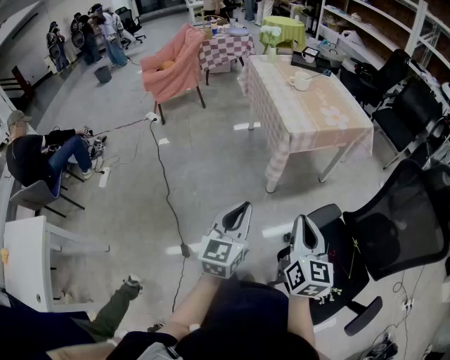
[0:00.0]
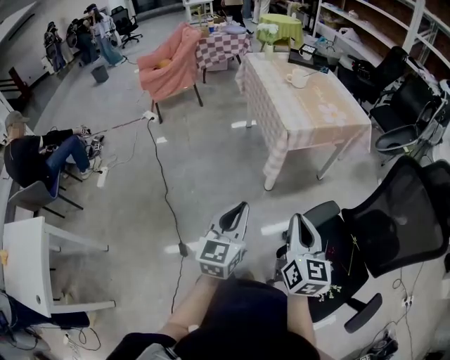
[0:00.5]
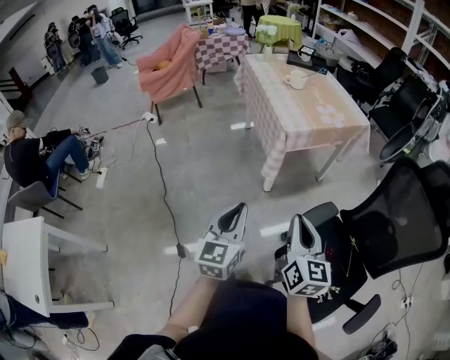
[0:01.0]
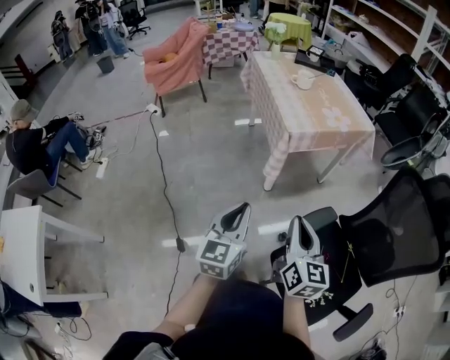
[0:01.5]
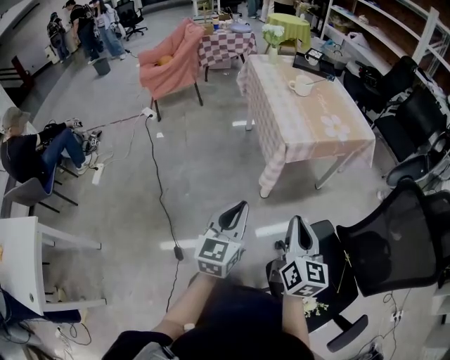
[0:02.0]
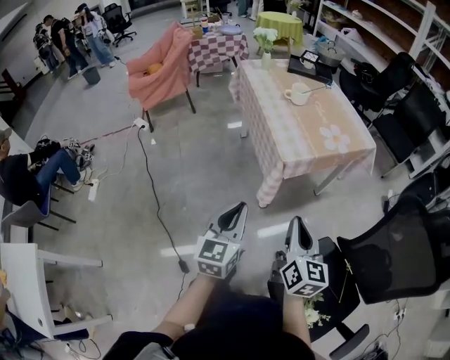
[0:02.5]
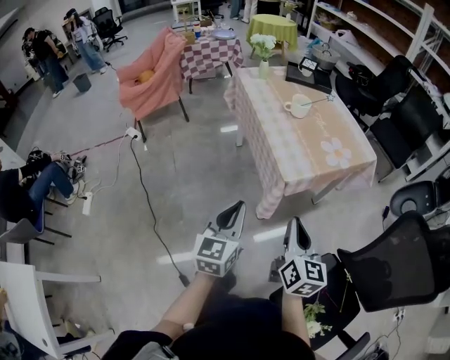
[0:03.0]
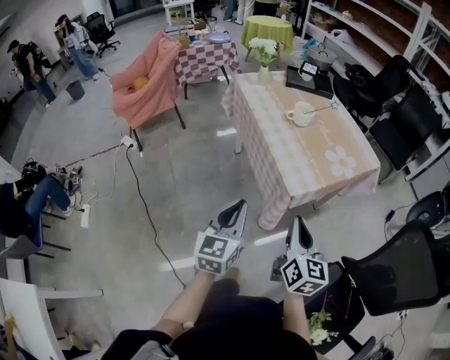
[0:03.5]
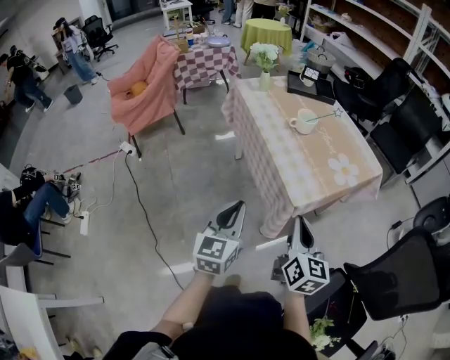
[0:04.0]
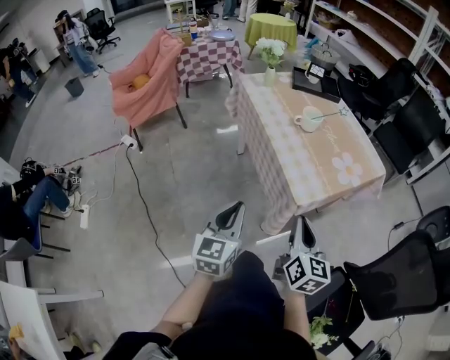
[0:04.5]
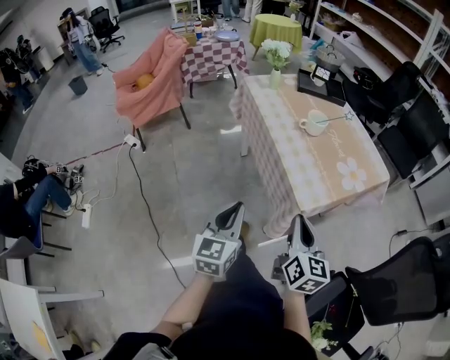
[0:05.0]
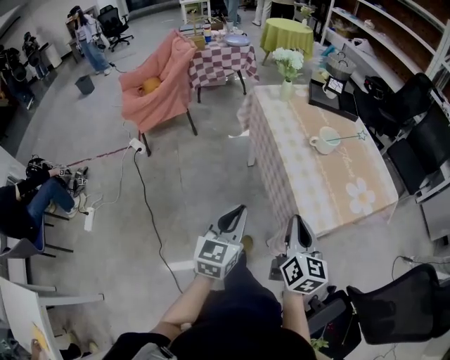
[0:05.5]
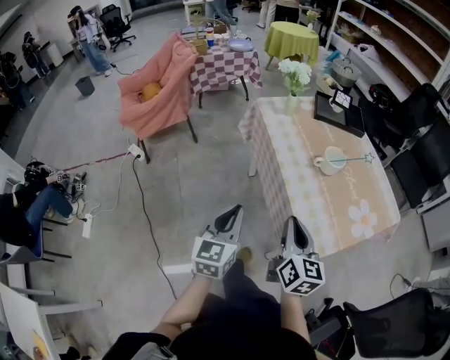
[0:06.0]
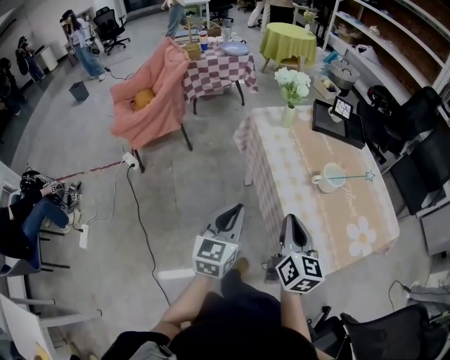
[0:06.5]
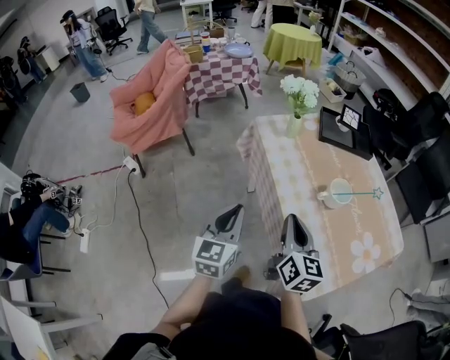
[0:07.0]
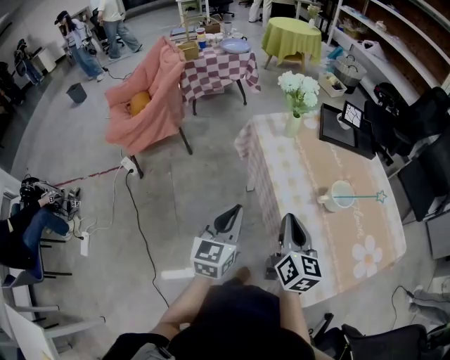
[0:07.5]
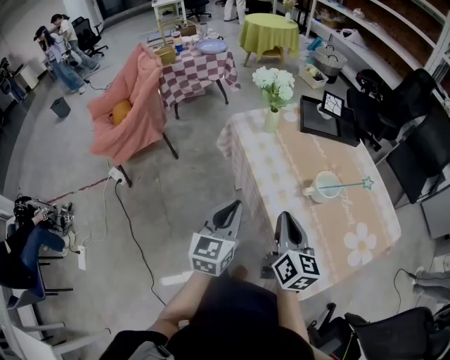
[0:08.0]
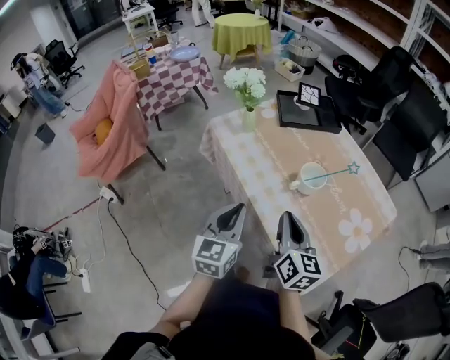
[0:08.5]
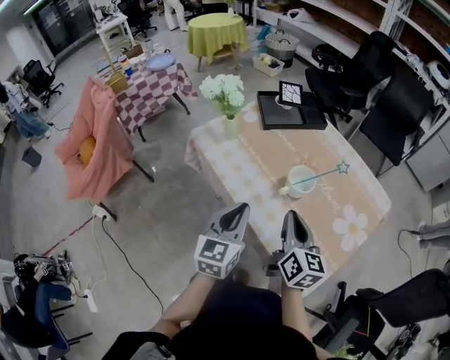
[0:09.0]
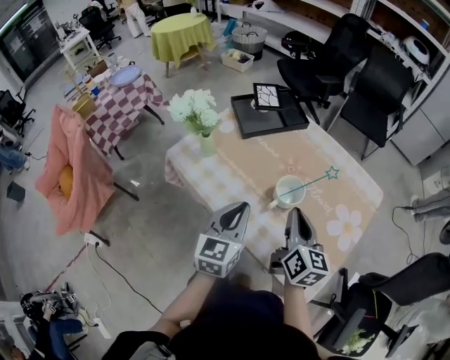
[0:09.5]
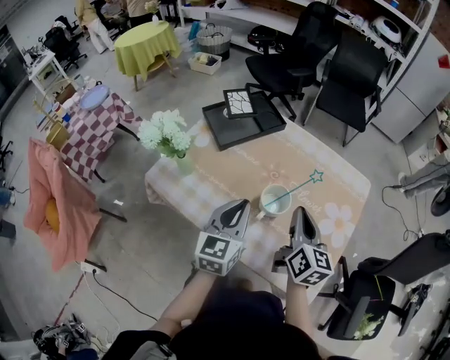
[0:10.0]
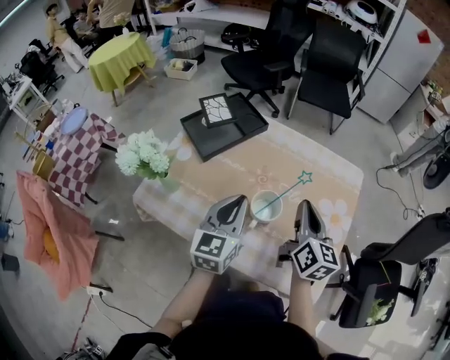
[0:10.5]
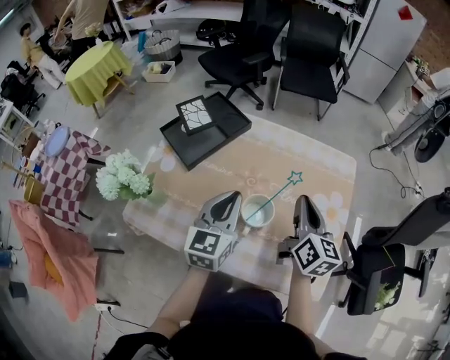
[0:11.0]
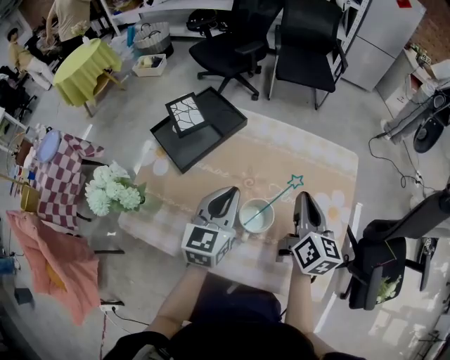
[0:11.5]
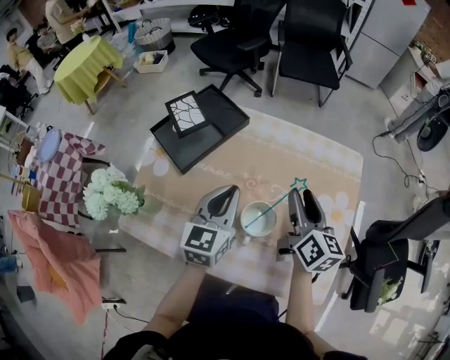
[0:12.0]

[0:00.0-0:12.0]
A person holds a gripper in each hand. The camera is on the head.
0:00.0 to 0:02.0: Both grippers travel together forward, roughly 5 cm.
0:02.0 to 0:04.0: The left gripper is displaced forward and to the left by some 30 cm, while the right gripper travels forward by some 25 cm.
0:04.0 to 0:06.0: Both grippers travel together forward and to the left, approximately 20 cm.
0:06.0 to 0:08.0: The grippers both shift forward by approximately 20 cm.
0:08.0 to 0:10.0: The right gripper moves some 20 cm, and rotates approximately 40 degrees; the left gripper shifts by roughly 25 cm, and swivels some 40 degrees.
0:10.0 to 0:12.0: The grippers both shift forward by approximately 10 cm. The right gripper opens.

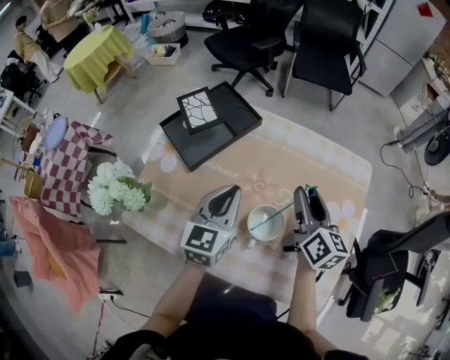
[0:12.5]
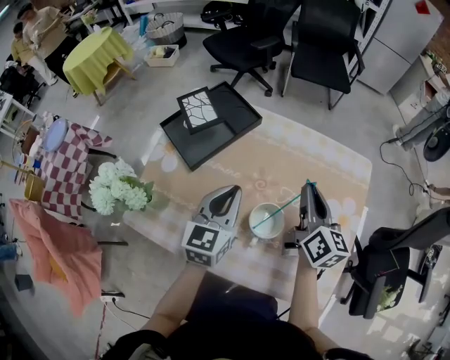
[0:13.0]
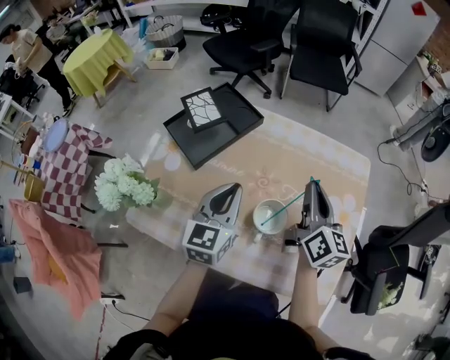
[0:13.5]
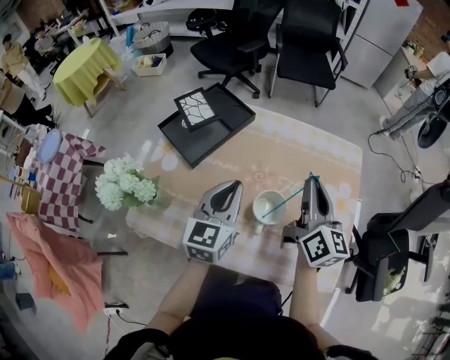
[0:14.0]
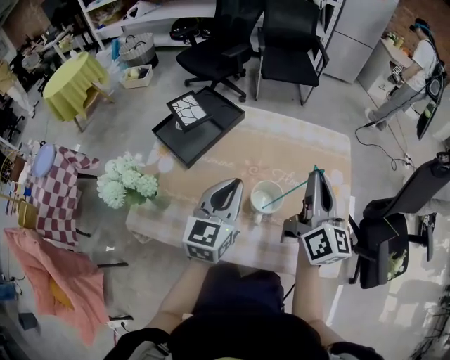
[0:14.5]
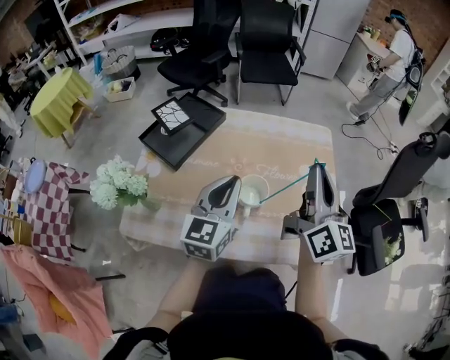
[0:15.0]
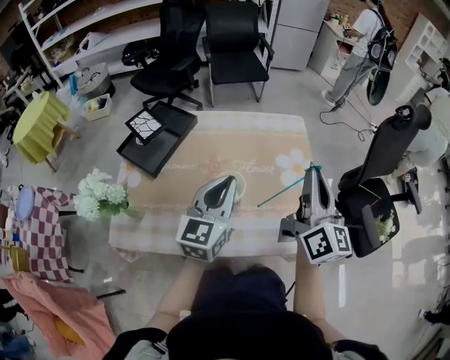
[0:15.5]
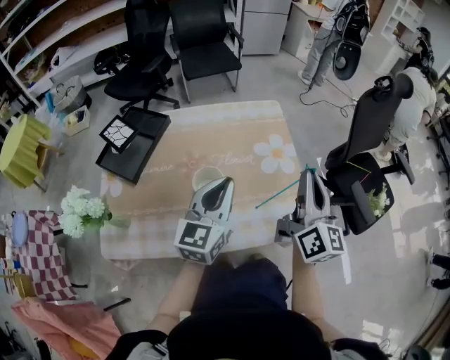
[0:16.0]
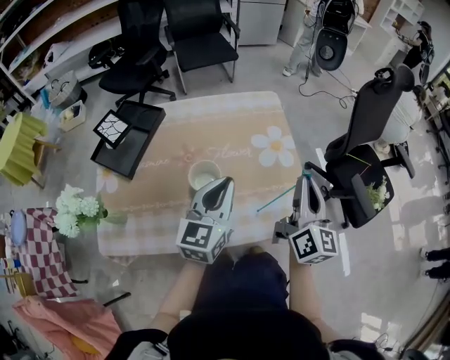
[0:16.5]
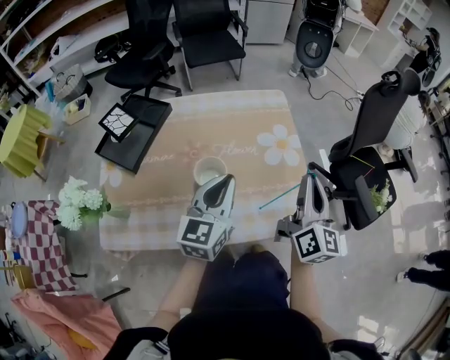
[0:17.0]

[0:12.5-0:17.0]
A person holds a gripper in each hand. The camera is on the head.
0:12.5 to 0:14.5: The right gripper is displaced upward and backward by about 15 cm, changes its angle by some 30 degrees, and closes up; the left gripper heads backward, covering approximately 5 cm.
0:14.5 to 0:17.0: The left gripper moves to the right, about 15 cm; the right gripper moves to the right and backward, some 20 cm, and changes its angle by about 20 degrees.

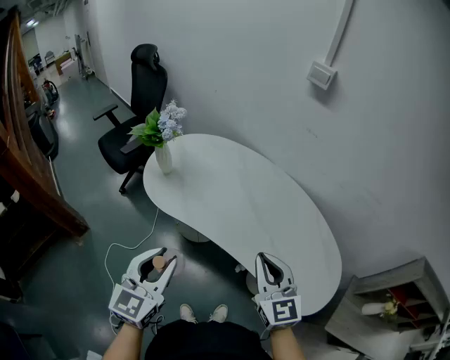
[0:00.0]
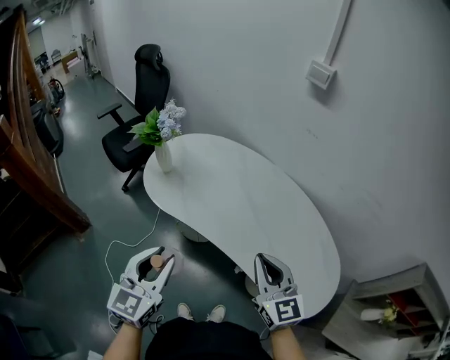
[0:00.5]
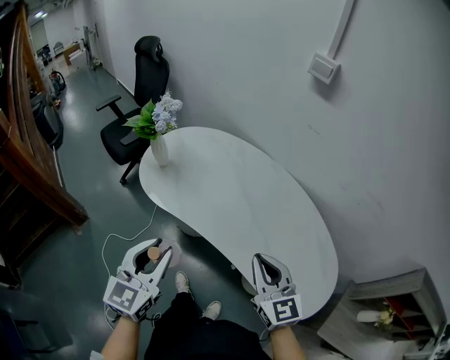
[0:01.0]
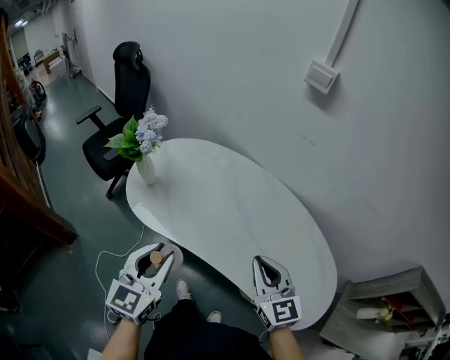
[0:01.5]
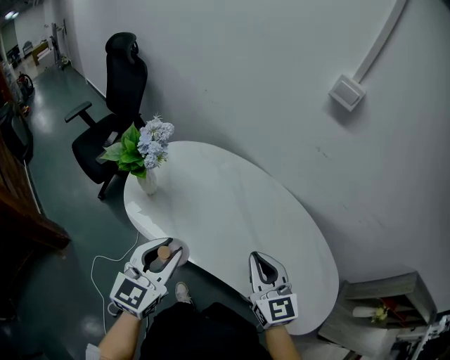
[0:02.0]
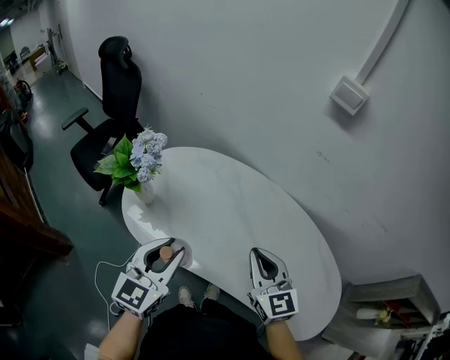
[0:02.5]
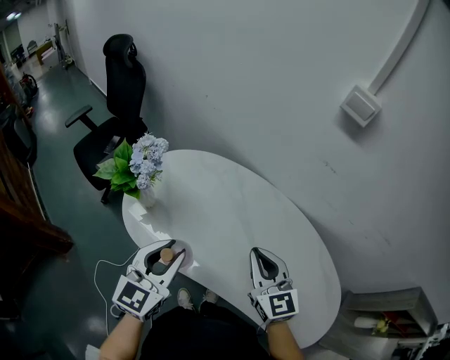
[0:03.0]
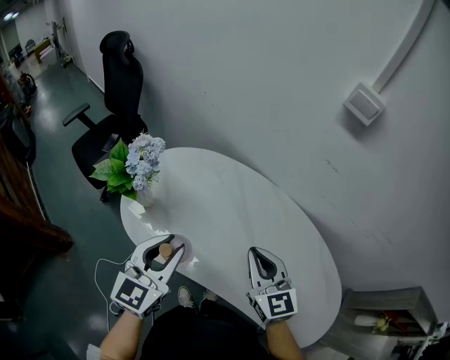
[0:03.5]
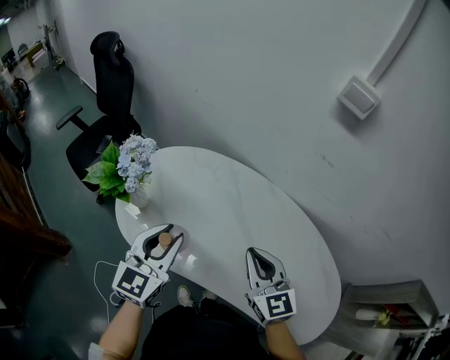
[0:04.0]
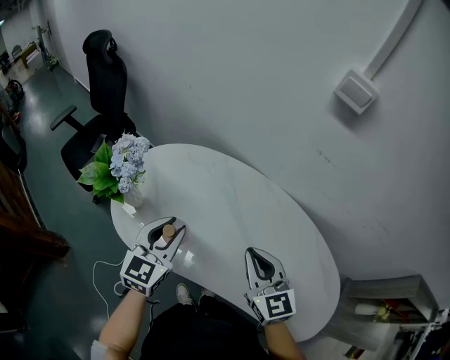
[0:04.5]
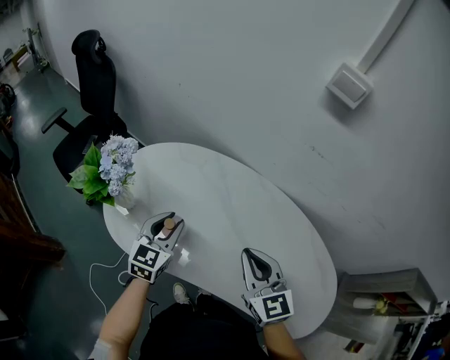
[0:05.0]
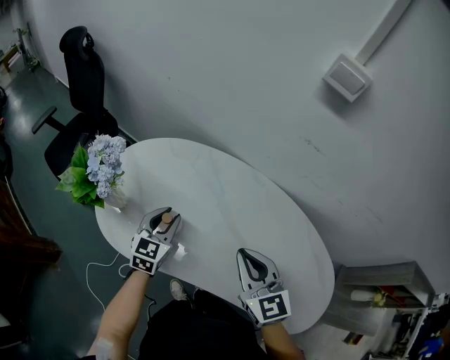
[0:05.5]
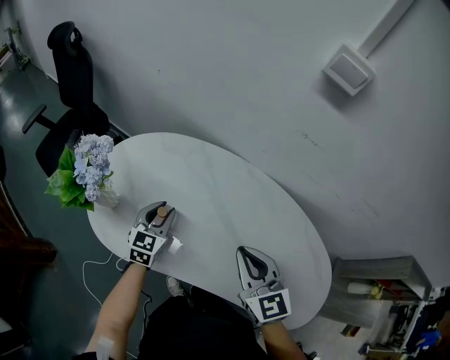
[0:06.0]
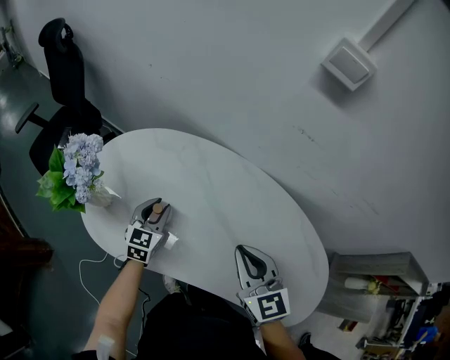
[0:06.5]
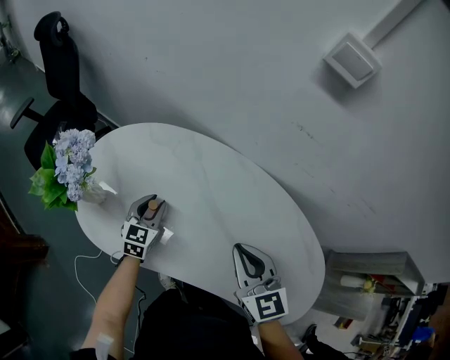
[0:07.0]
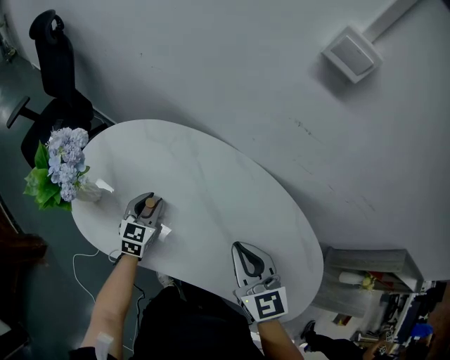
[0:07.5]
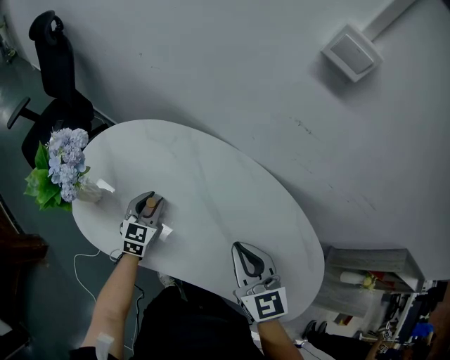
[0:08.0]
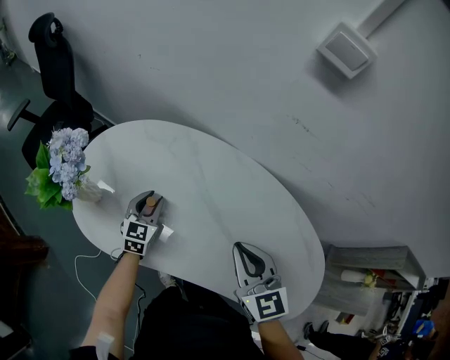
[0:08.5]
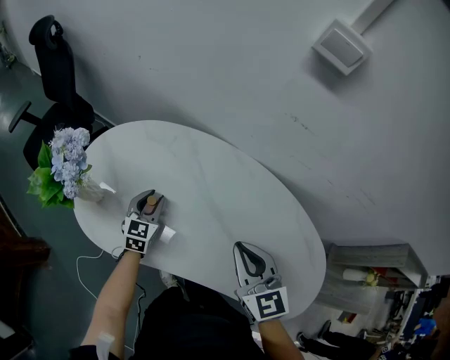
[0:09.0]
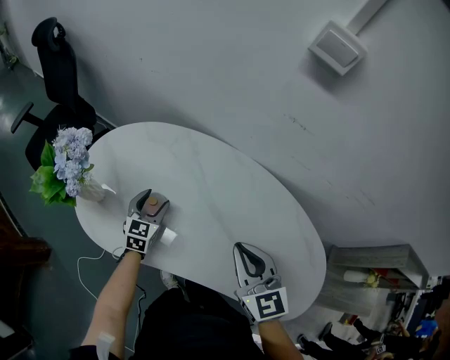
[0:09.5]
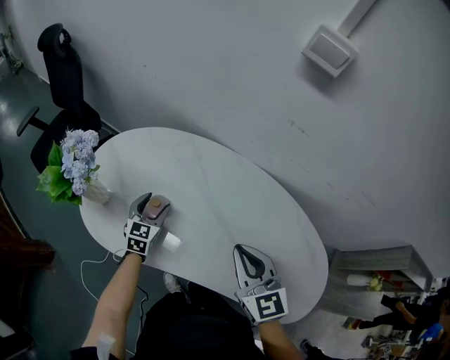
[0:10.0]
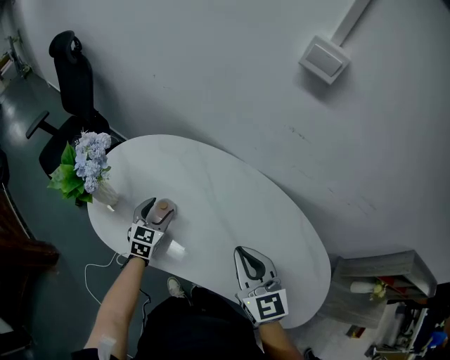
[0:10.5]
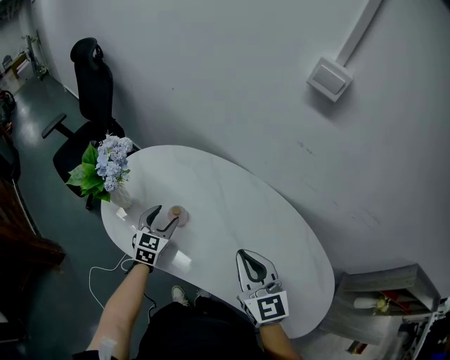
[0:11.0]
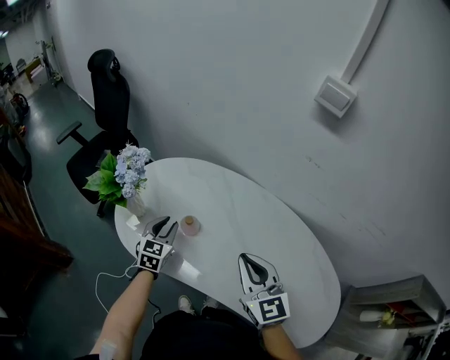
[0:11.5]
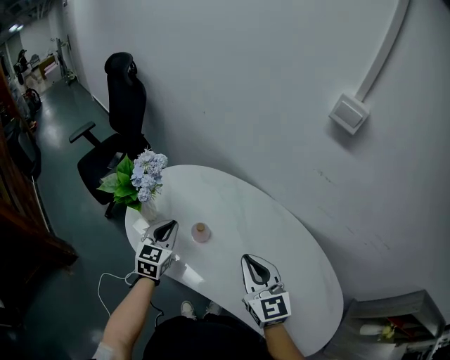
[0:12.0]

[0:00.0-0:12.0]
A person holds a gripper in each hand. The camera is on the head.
0:00.0 to 0:02.0: The grippers both shift forward by roughly 20 cm.
0:02.0 to 0:04.0: The two grippers go roughly 10 cm forward.
0:04.0 to 0:06.0: The left gripper travels downward and forward by some 20 cm.
0:06.0 to 0:08.0: The left gripper goes some 5 cm downward.
0:08.0 to 0:10.0: The left gripper opens its fingers.
0:10.0 to 0:12.0: The left gripper shifts some 15 cm upward and to the left, and closes its fingers; the right gripper travels to the left by some 5 cm.
